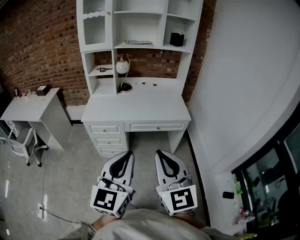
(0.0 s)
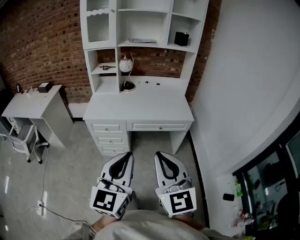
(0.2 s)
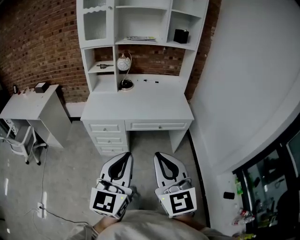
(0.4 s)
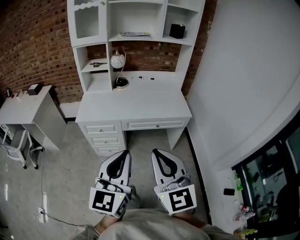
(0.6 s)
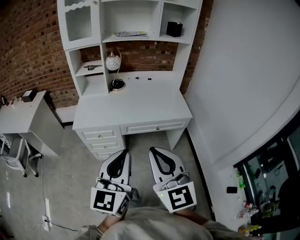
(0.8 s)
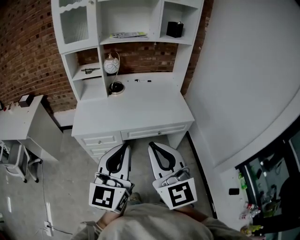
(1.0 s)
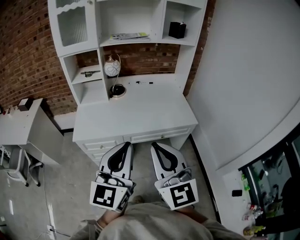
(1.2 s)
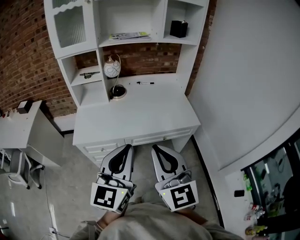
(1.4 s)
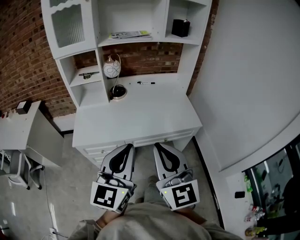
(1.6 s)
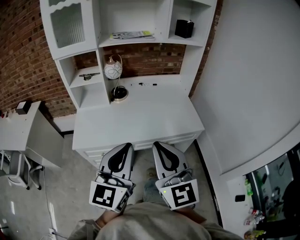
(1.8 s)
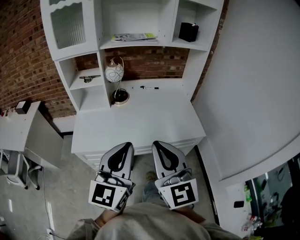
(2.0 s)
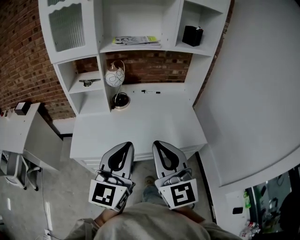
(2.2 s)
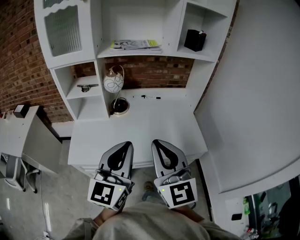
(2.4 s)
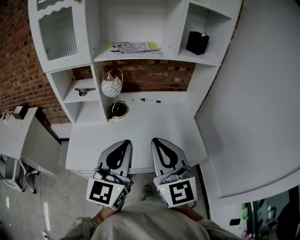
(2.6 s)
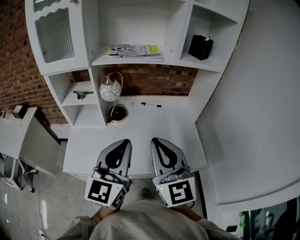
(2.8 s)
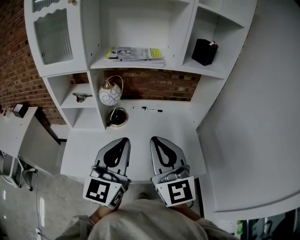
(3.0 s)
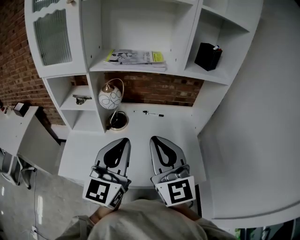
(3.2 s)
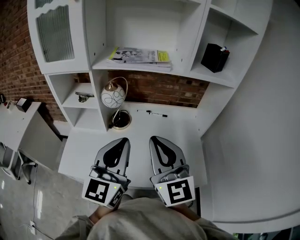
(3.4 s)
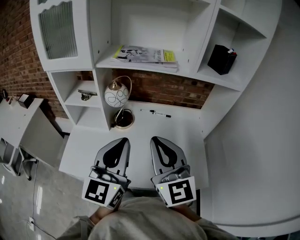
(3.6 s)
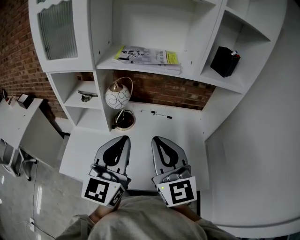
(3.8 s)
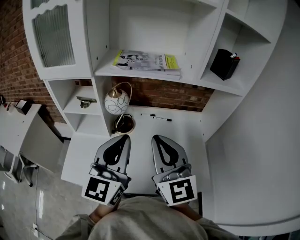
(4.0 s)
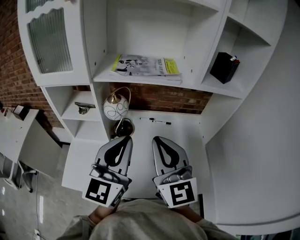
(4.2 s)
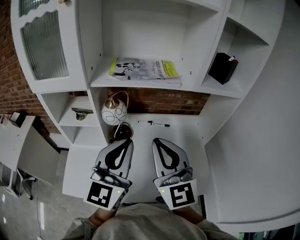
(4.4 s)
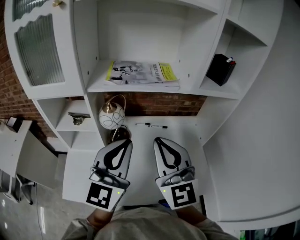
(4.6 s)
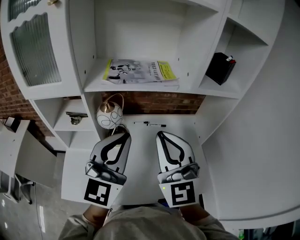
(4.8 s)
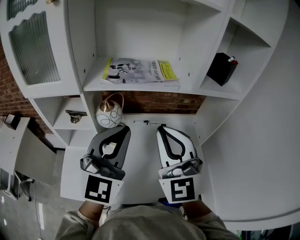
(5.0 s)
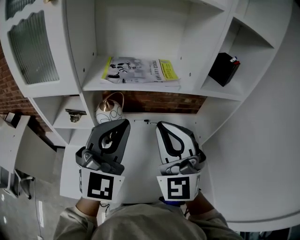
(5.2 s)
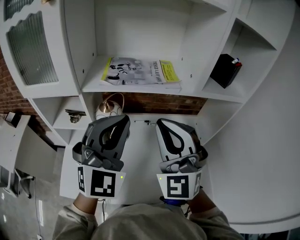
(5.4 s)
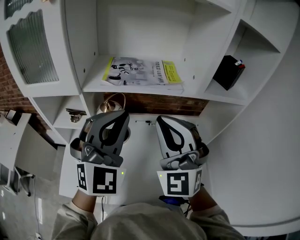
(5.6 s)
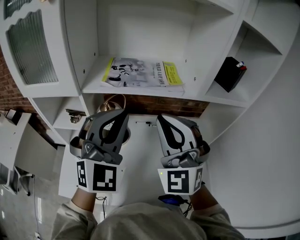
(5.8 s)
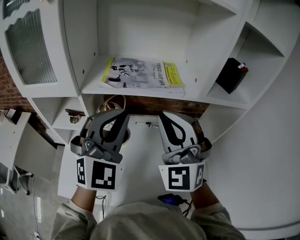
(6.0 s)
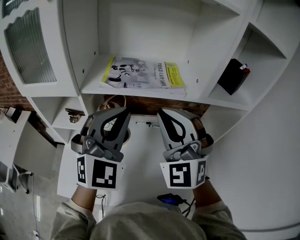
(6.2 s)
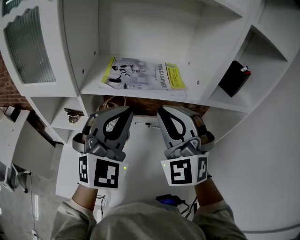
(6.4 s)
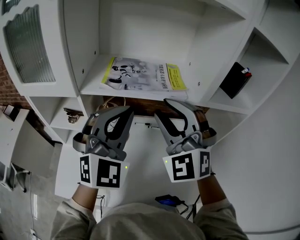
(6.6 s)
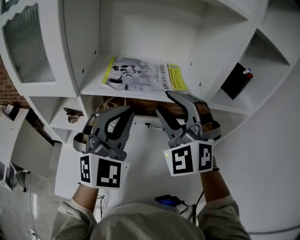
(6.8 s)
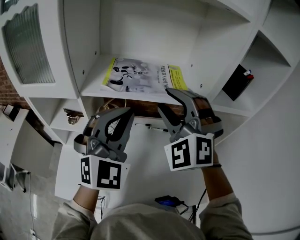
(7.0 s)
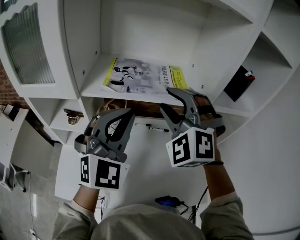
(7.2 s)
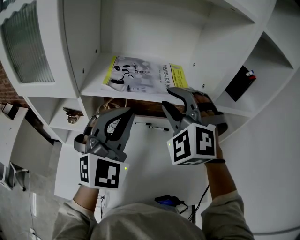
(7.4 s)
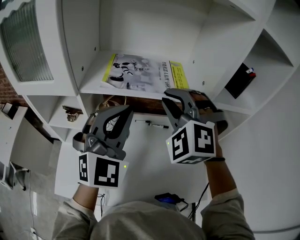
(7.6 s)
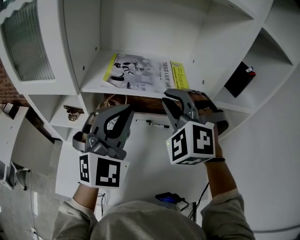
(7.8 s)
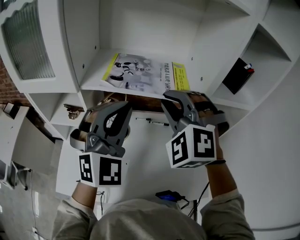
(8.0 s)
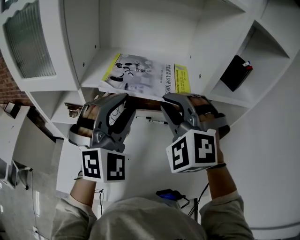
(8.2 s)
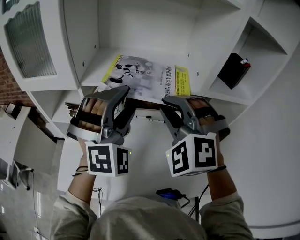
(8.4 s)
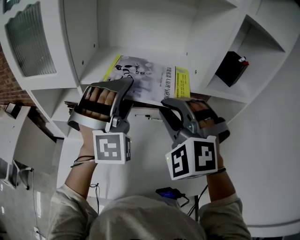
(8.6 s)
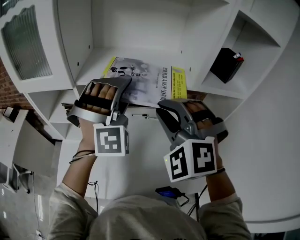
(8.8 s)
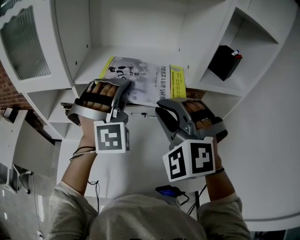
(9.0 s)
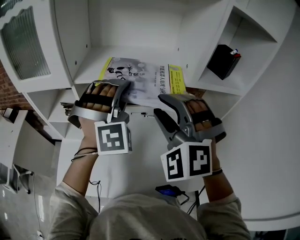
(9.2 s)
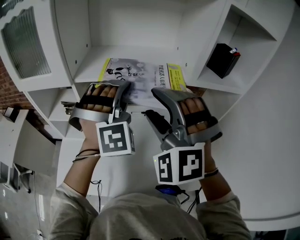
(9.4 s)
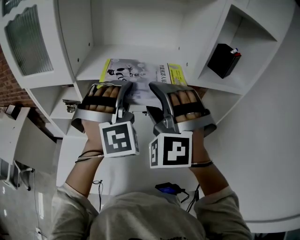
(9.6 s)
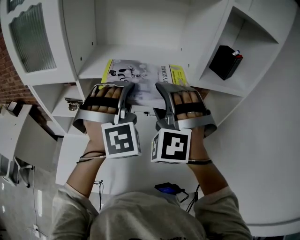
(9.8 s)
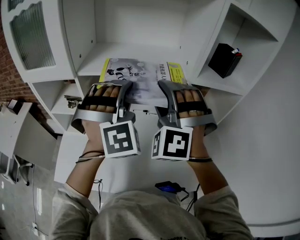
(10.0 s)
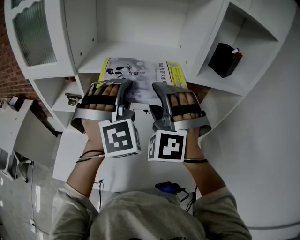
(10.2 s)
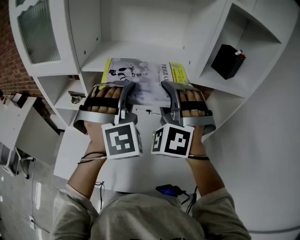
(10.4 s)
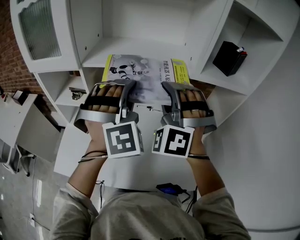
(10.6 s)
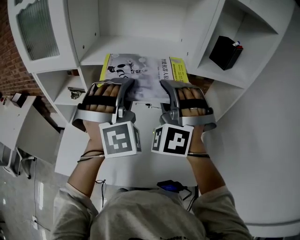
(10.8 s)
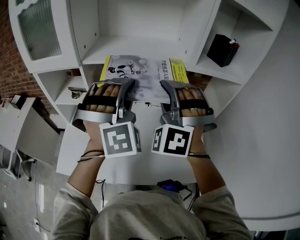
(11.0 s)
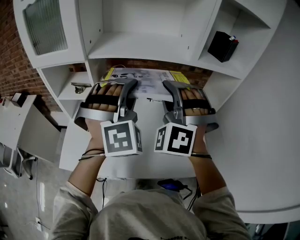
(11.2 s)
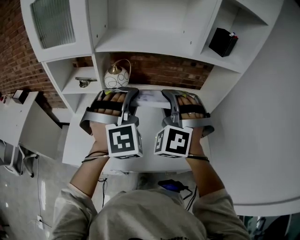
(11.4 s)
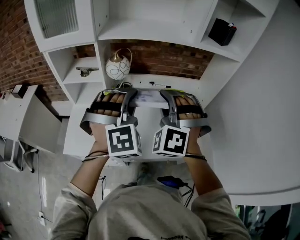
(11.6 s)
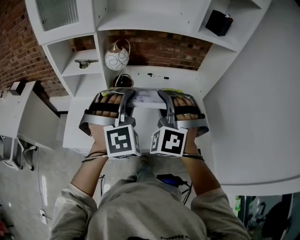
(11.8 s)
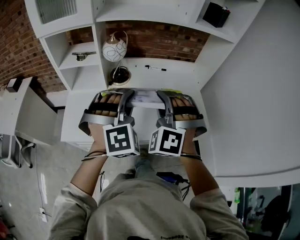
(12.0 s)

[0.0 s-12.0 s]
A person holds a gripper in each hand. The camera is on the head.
0.0 to 1.6 s: The two grippers go approximately 30 cm forward.
1.6 to 3.0 s: The grippers both shift forward by approximately 30 cm.
3.0 to 4.4 s: Both grippers travel together forward, some 15 cm.
4.4 to 6.0 s: Both grippers move forward and upward, approximately 10 cm. The left gripper rolls clockwise, seen from behind, by approximately 40 degrees. The right gripper rotates around the line of its fingers by roughly 40 degrees, counterclockwise from behind.
6.0 to 7.6 s: The right gripper travels forward by about 10 cm, rotates roughly 30 degrees, and opens, then closes again.
7.6 to 9.0 s: The left gripper ends up approximately 5 cm from where it was, twists about 40 degrees clockwise, seen from behind, and opens and closes again, while the right gripper is displaced backward by approximately 10 cm.
9.0 to 10.4 s: The left gripper is displaced backward by roughly 5 cm. Meanwhile the right gripper opens up.
10.4 to 12.0 s: Both grippers travel together backward and downward, approximately 25 cm.

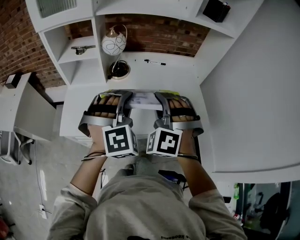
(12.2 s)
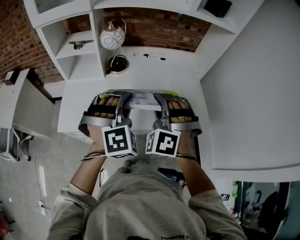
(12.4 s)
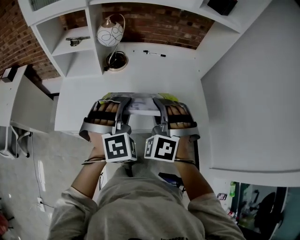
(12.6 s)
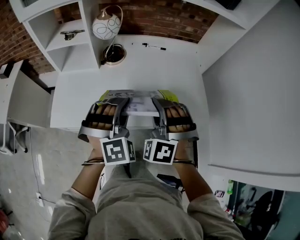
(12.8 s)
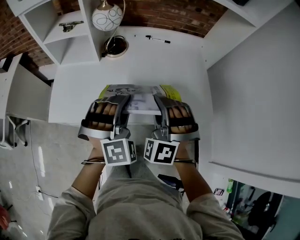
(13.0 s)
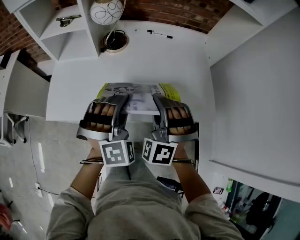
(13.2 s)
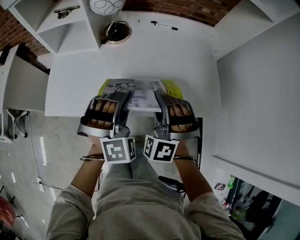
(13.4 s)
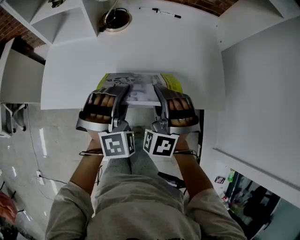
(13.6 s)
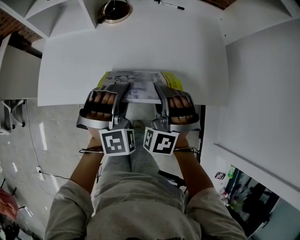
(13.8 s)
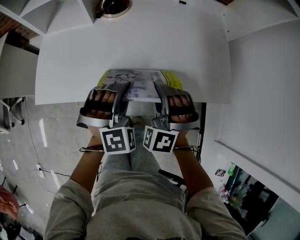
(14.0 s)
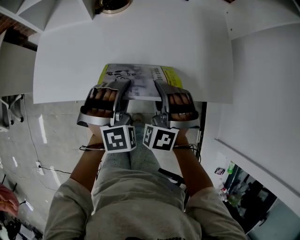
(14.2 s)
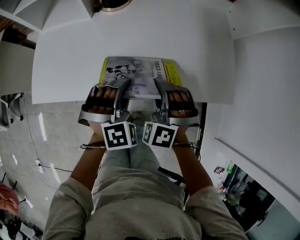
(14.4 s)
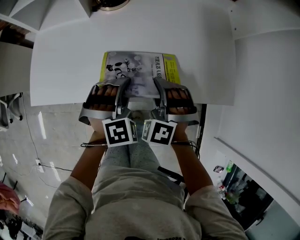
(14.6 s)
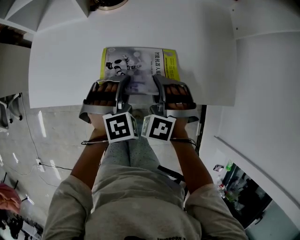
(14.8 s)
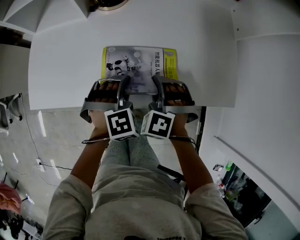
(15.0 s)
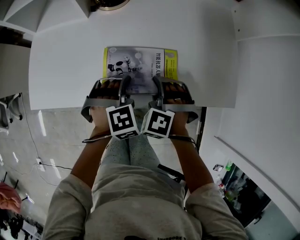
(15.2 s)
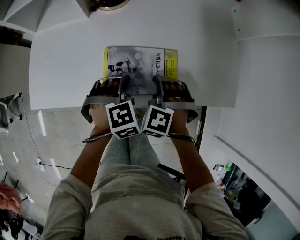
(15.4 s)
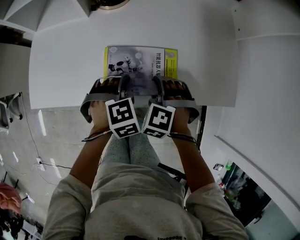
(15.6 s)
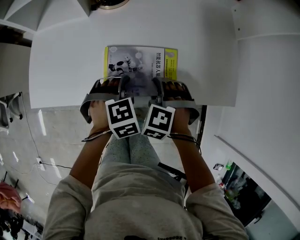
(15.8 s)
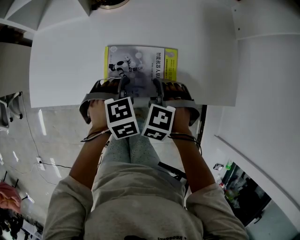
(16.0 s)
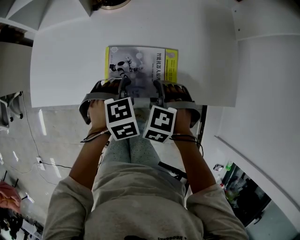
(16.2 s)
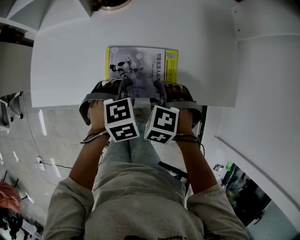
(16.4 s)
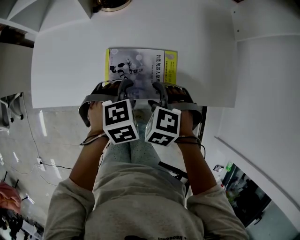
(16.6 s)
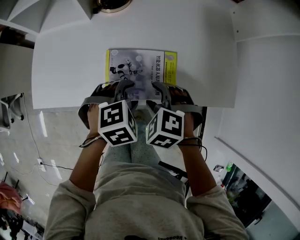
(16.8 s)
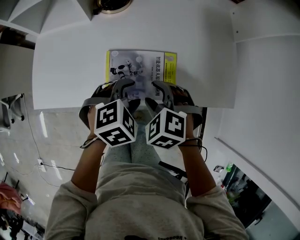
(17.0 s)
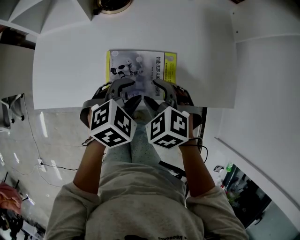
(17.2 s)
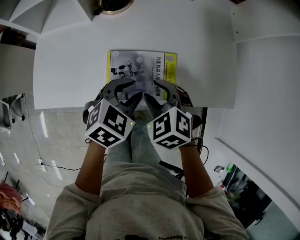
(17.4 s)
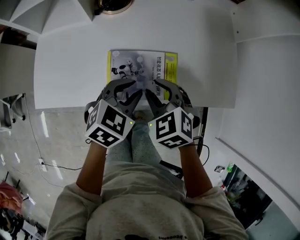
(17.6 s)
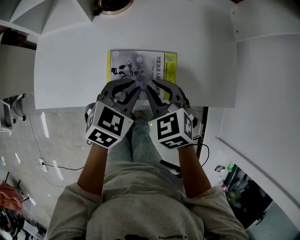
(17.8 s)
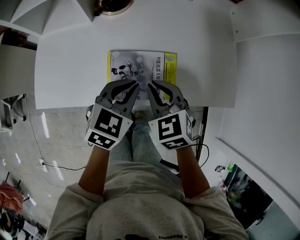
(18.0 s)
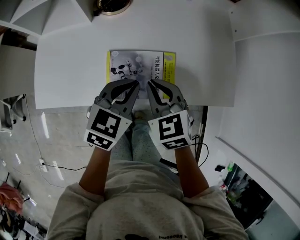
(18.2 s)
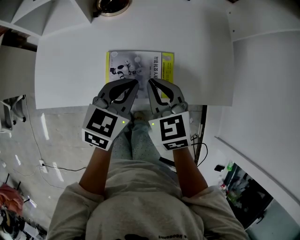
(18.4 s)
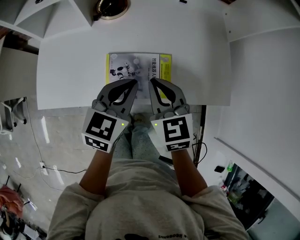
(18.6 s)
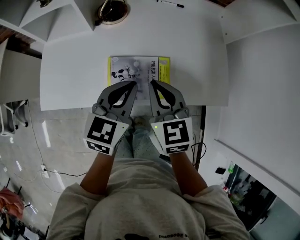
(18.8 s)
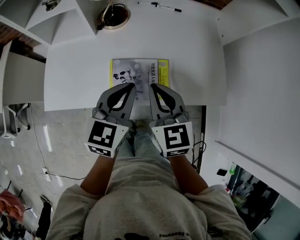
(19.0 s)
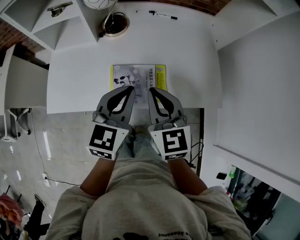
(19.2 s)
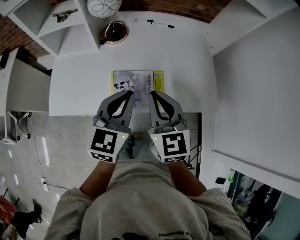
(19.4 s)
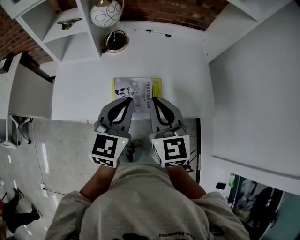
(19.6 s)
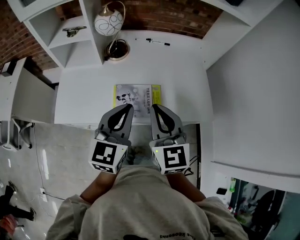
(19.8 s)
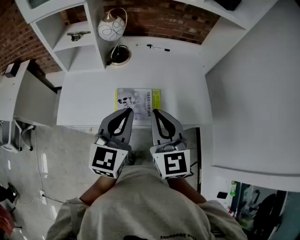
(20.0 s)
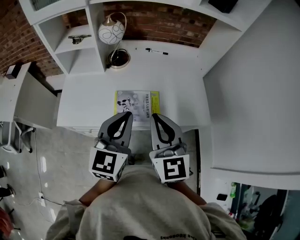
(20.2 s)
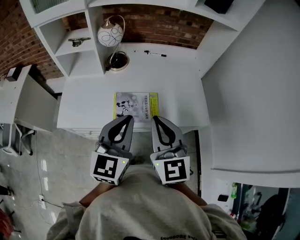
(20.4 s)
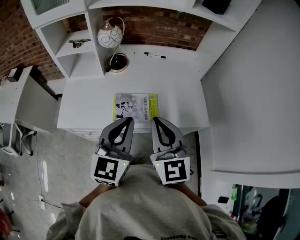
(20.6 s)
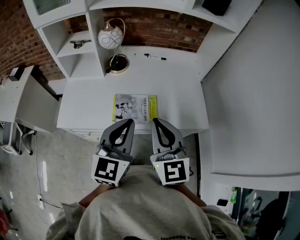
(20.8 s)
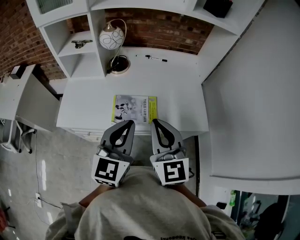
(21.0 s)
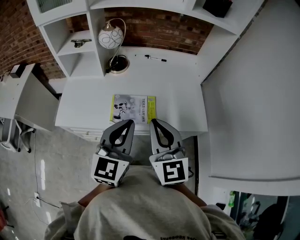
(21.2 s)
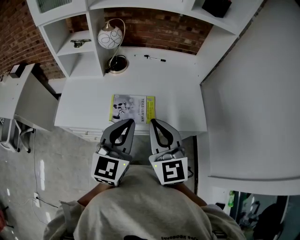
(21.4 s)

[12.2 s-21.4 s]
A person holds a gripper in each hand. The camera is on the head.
12.2 to 13.8 s: Both grippers move downward, some 20 cm.
13.8 to 15.2 s: The grippers both shift downward by roughly 10 cm. The left gripper rotates roughly 30 degrees; the right gripper turns by about 20 degrees.
15.2 to 16.8 s: The right gripper shifts by roughly 5 cm, changes its angle by roughly 30 degrees, and opens up, while the left gripper turns by some 20 degrees, and opens up.
16.8 to 18.4 s: The two grippers go approximately 10 cm upward. The right gripper angles its fingers upward, by some 30 degrees, and closes. The left gripper angles its fingers upward, by about 40 degrees, and closes.
18.4 to 19.8 s: Both grippers move upward and backward, about 20 cm. The left gripper changes its angle by some 20 degrees. Meanwhile the right gripper turns by about 30 degrees.
19.8 to 21.4 s: The two grippers go approximately 5 cm backward.

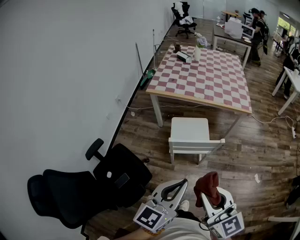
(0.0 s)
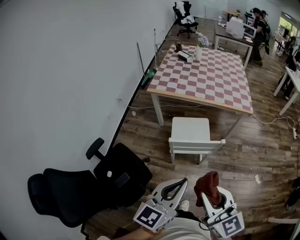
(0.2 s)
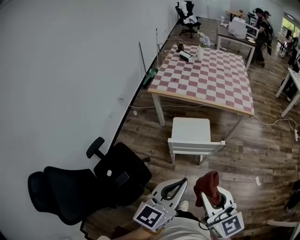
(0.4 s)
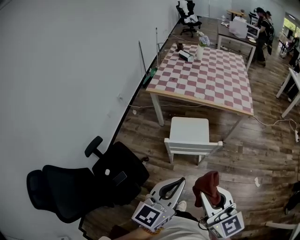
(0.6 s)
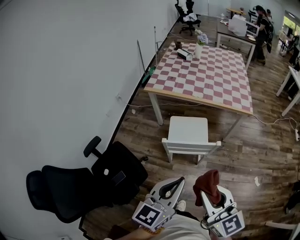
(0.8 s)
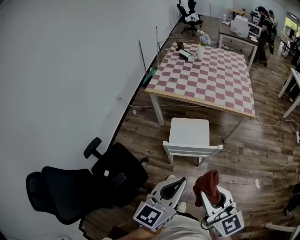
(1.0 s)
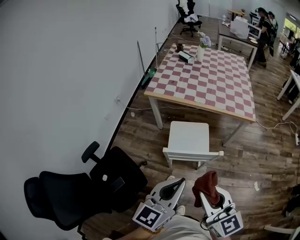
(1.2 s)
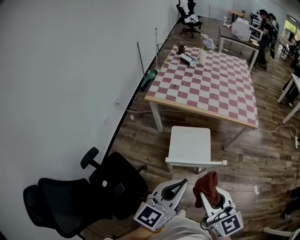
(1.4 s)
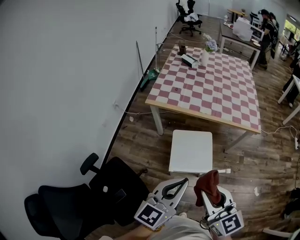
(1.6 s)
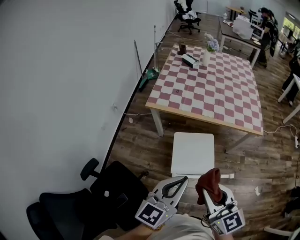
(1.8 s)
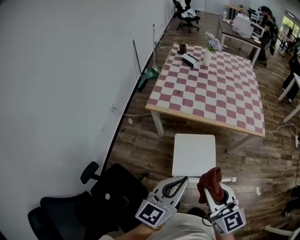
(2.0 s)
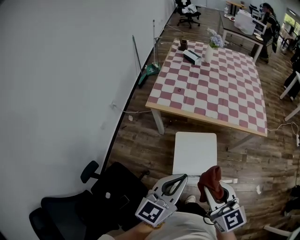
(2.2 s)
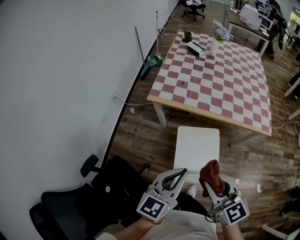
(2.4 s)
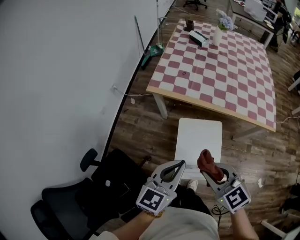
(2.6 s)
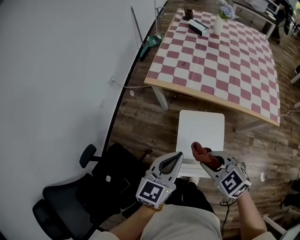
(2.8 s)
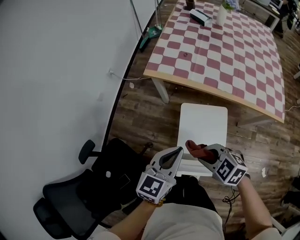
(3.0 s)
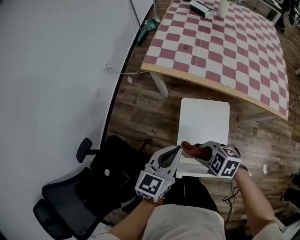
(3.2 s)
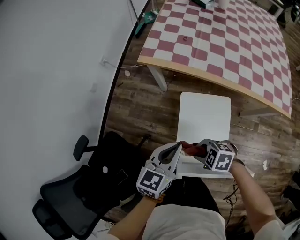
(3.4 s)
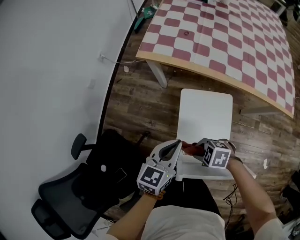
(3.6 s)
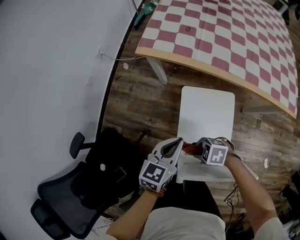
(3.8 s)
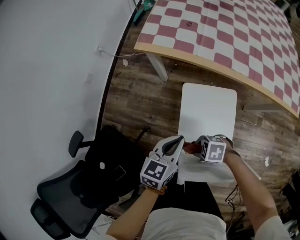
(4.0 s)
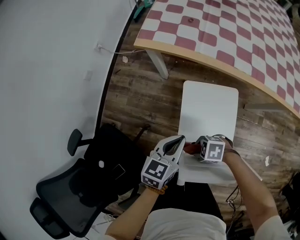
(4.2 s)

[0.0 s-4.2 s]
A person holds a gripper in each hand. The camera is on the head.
0.0 to 1.4 s: The grippers both shift forward by some 15 cm.
1.4 to 2.8 s: Both grippers travel together forward and downward, approximately 30 cm. The right gripper tilts its fingers some 30 degrees downward.
2.8 to 4.2 s: Both grippers travel together downward, about 25 cm. The right gripper turns by approximately 50 degrees.
